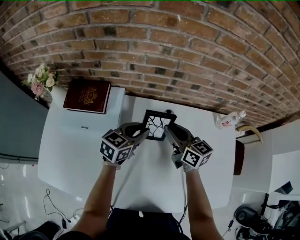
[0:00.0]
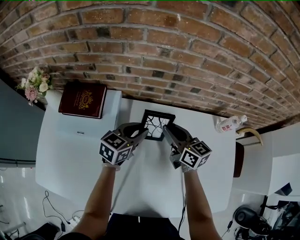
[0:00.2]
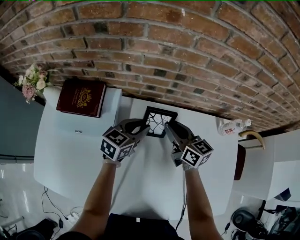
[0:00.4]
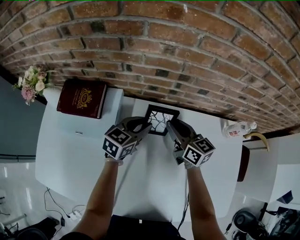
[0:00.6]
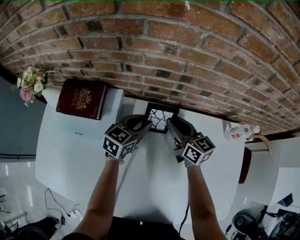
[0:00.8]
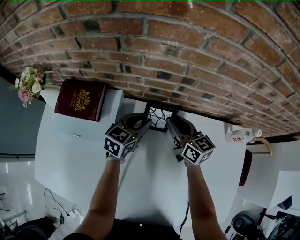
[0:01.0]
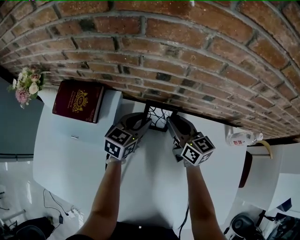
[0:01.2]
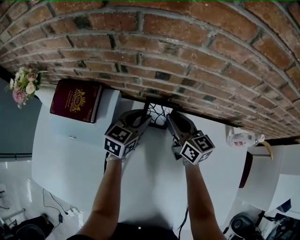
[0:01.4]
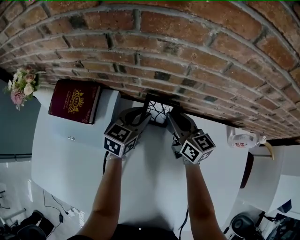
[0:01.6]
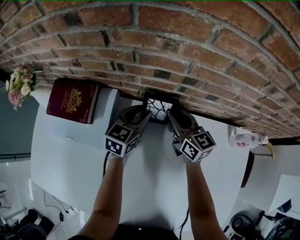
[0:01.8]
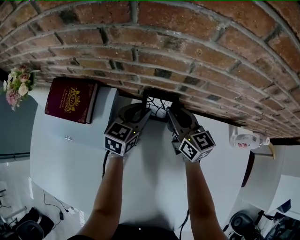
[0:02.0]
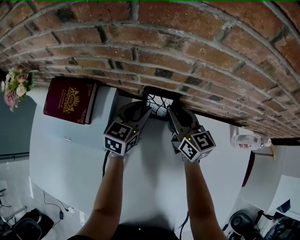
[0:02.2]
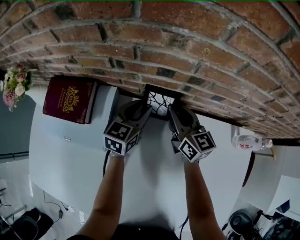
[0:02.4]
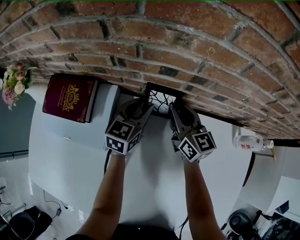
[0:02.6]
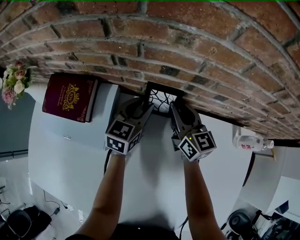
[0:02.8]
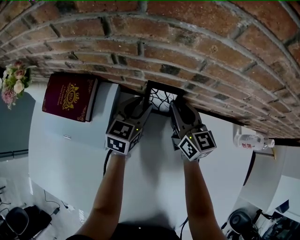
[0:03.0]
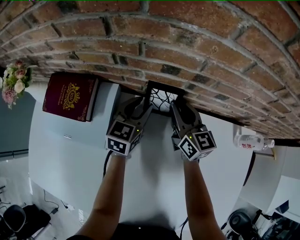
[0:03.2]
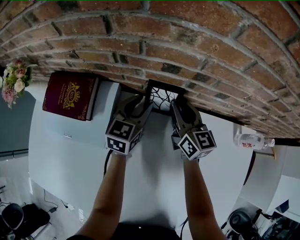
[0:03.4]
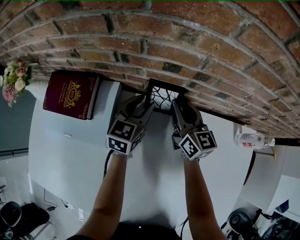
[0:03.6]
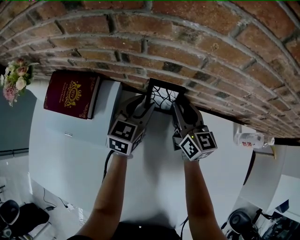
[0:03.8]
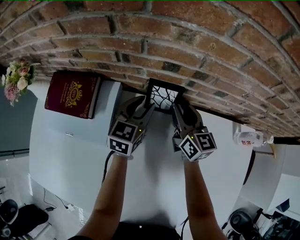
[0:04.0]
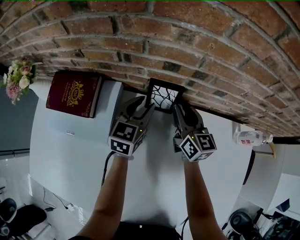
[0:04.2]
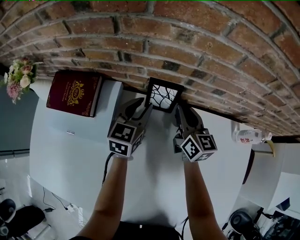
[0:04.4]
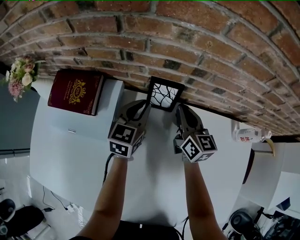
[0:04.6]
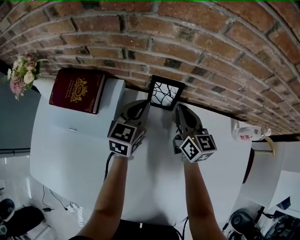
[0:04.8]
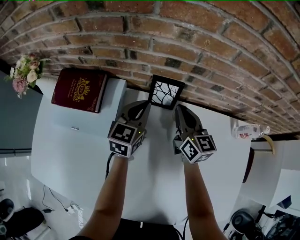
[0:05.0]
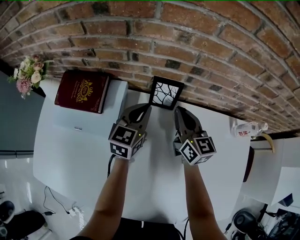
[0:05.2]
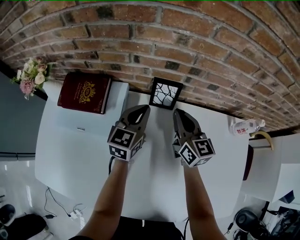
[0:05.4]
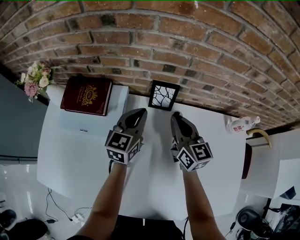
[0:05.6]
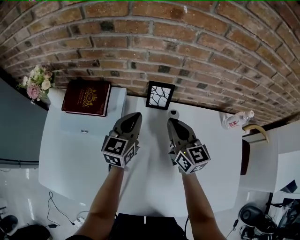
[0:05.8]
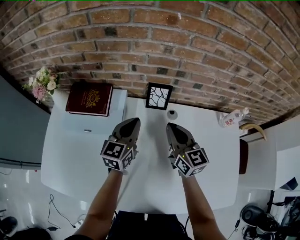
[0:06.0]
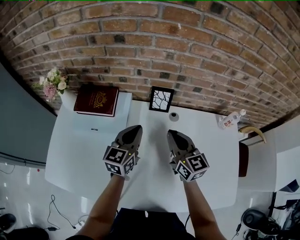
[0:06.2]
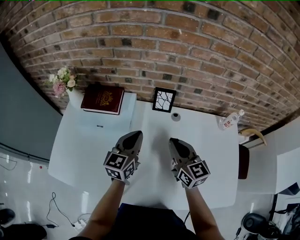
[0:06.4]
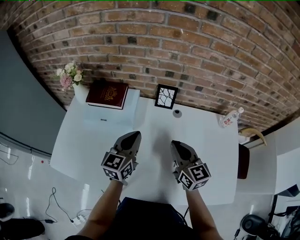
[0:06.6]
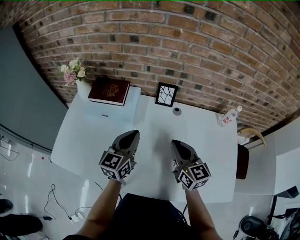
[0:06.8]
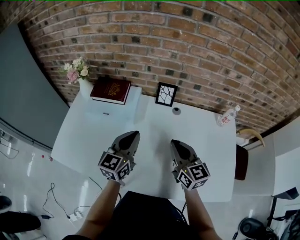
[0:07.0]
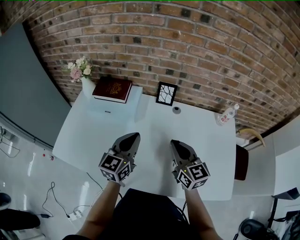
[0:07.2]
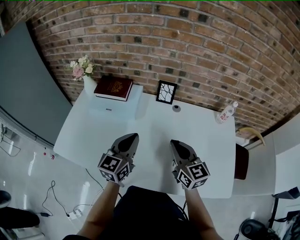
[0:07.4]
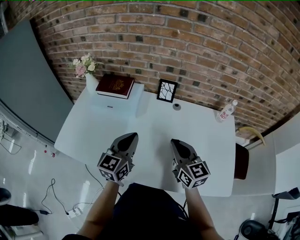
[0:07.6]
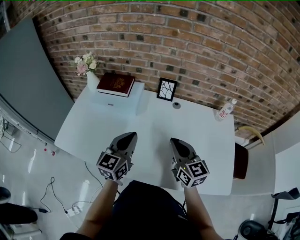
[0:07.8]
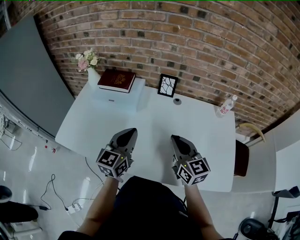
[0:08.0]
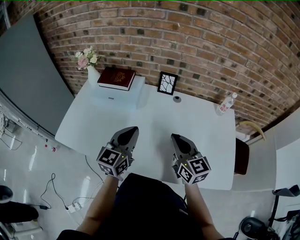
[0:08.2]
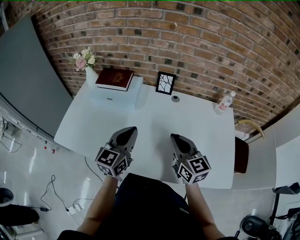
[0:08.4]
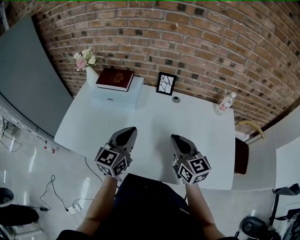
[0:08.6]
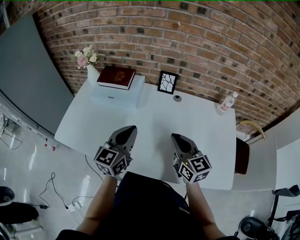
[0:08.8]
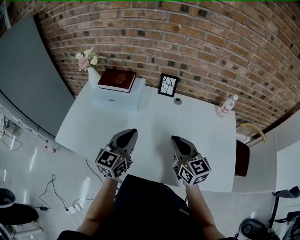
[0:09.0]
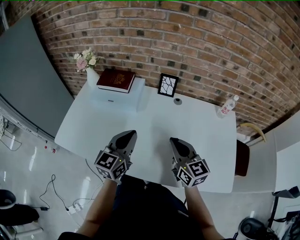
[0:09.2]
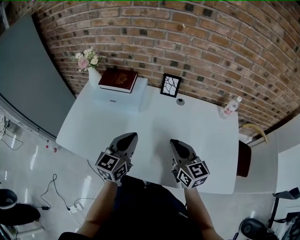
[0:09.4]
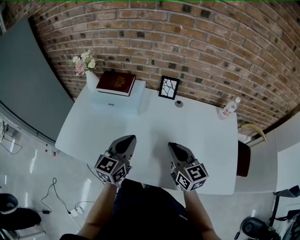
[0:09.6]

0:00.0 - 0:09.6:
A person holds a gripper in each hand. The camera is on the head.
0:00.0 - 0:01.6: Both grippers move forward and downward, roughly 15 cm.
0:01.6 - 0:03.2: There are only small adjustments of the grippers.
0:03.2 - 0:04.8: The left gripper moves approximately 5 cm, and closes its fingers, while the right gripper closes.
0:04.8 - 0:06.4: Both grippers move backward and upward, roughly 25 cm.
0:06.4 - 0:08.0: Both grippers move backward, about 20 cm.
0:08.0 - 0:09.6: There are only small adjustments of the grippers.

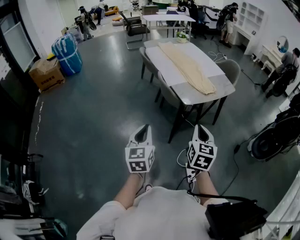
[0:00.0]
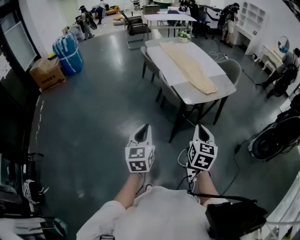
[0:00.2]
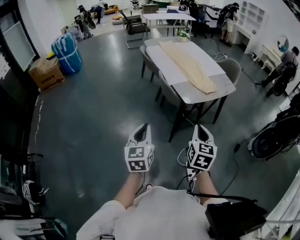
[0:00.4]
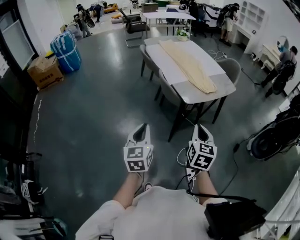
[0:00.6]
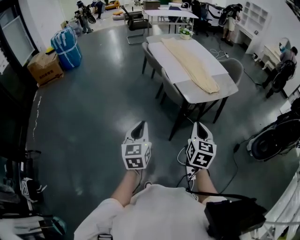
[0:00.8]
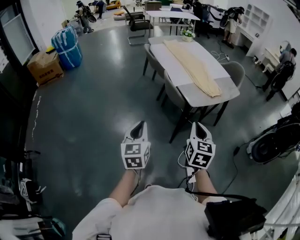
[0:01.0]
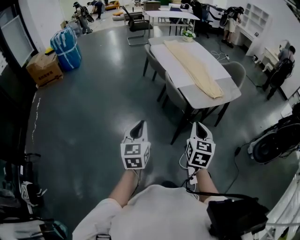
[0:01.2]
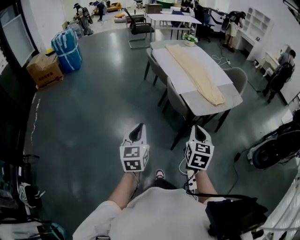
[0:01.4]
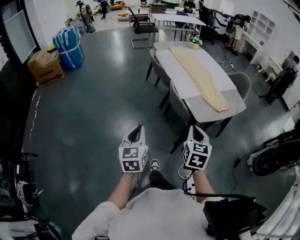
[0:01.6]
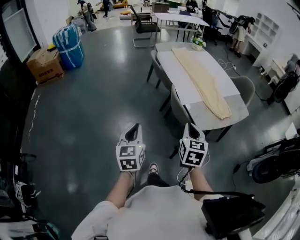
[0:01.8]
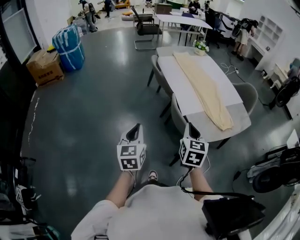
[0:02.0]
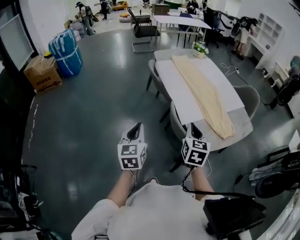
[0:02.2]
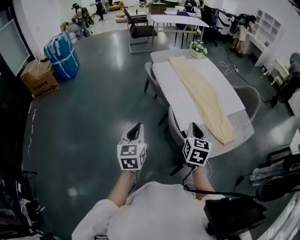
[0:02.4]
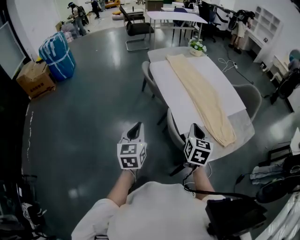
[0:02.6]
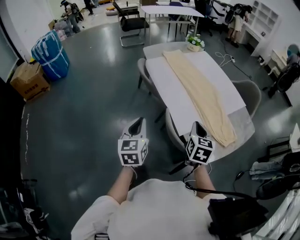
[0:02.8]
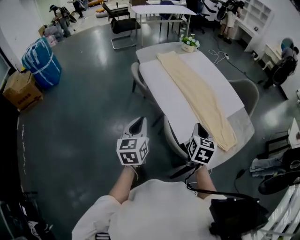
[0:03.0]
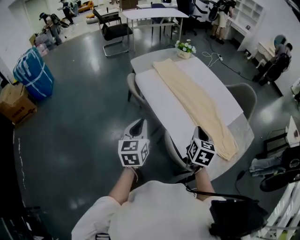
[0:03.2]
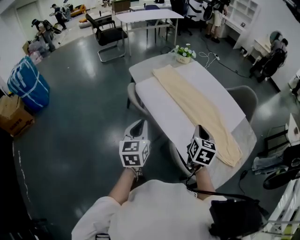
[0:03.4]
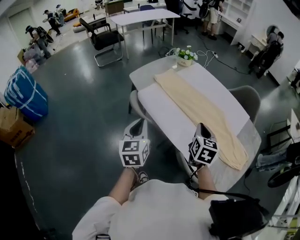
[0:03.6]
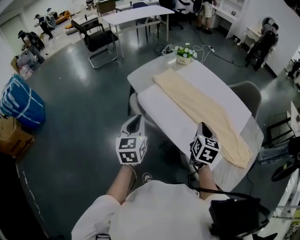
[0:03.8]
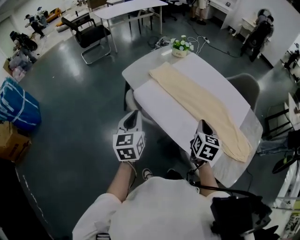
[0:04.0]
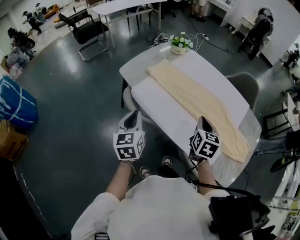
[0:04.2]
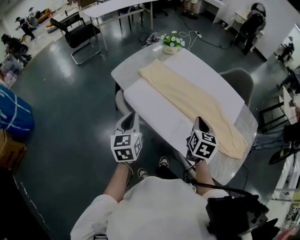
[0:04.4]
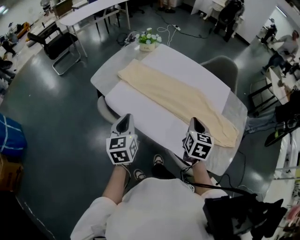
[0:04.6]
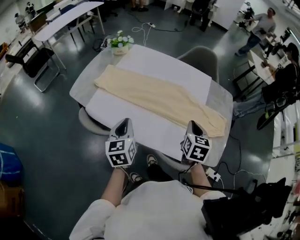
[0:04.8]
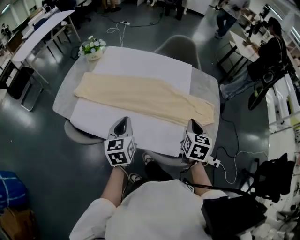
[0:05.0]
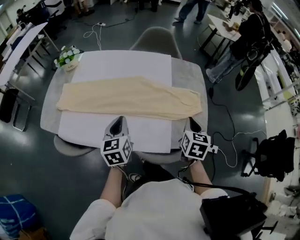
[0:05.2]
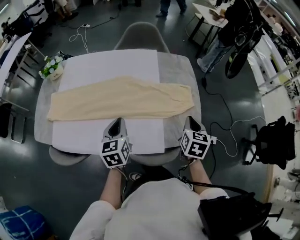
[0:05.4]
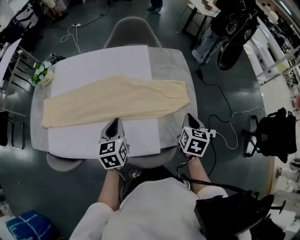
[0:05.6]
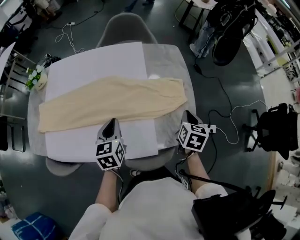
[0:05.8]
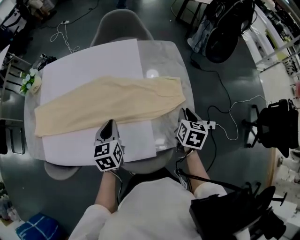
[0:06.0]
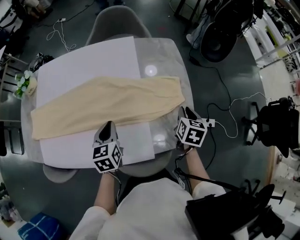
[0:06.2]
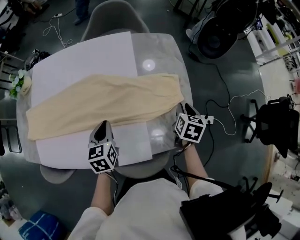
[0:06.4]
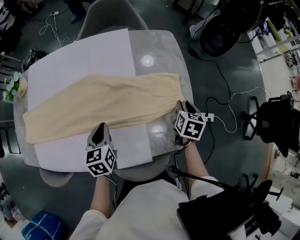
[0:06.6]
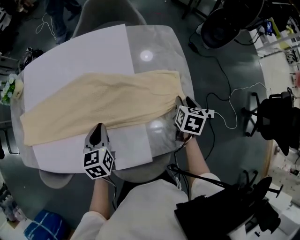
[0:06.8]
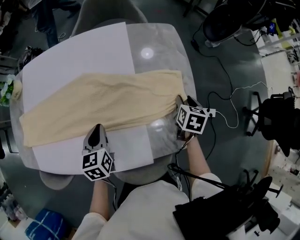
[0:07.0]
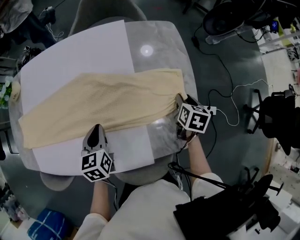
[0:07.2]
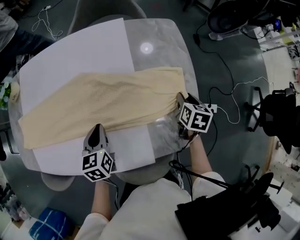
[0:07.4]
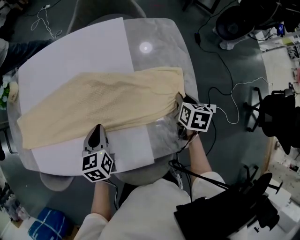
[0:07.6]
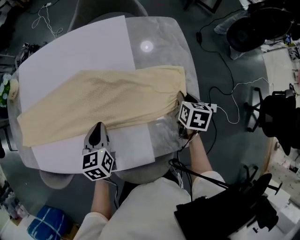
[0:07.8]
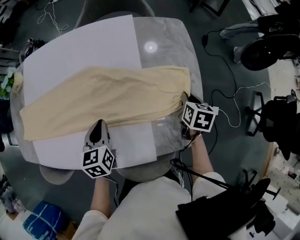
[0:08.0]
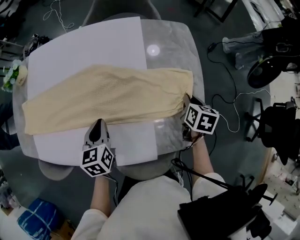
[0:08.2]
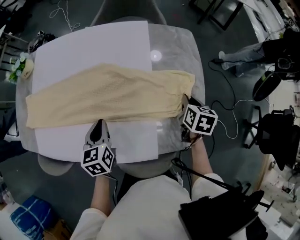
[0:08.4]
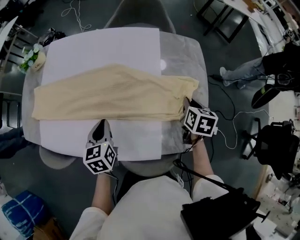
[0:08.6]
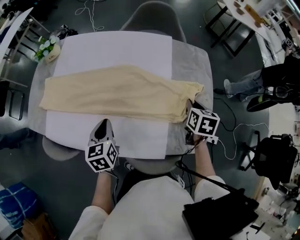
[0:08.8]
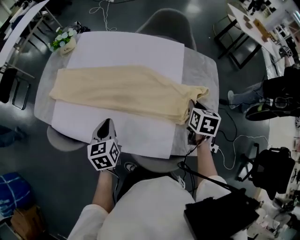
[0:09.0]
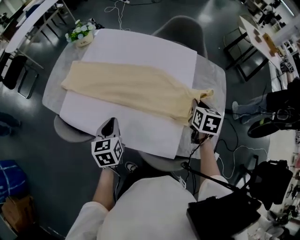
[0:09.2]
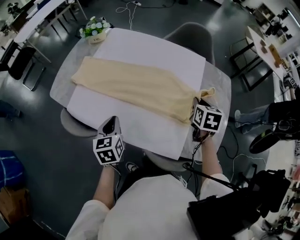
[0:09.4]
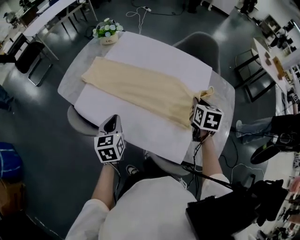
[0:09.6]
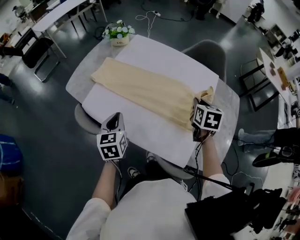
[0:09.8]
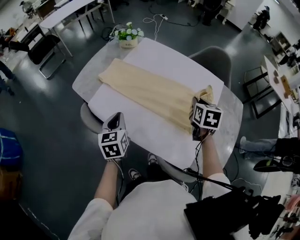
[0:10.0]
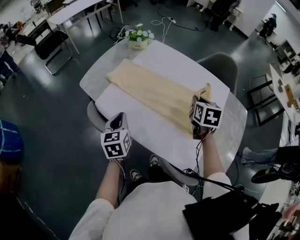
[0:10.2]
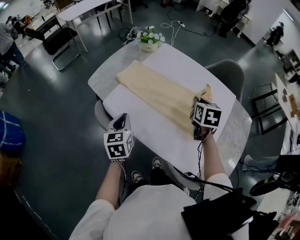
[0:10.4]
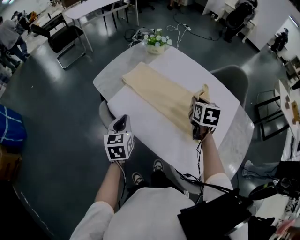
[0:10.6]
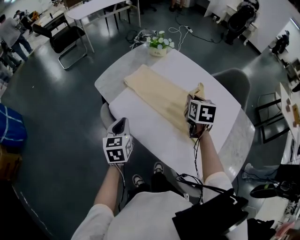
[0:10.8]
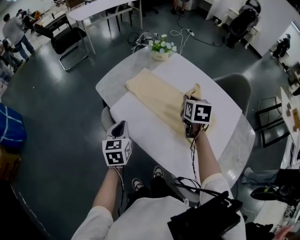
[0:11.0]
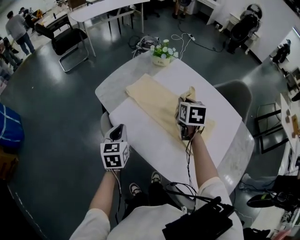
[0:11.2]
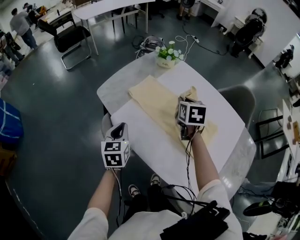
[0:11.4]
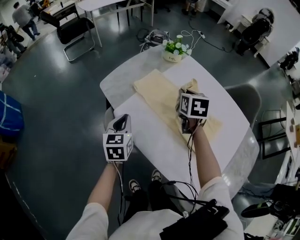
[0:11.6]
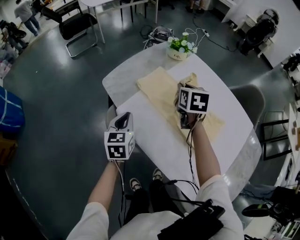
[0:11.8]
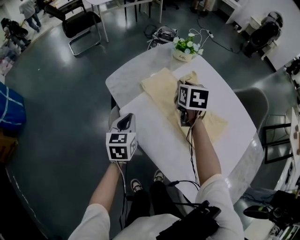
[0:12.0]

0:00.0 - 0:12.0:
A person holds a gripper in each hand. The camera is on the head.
0:00.0 - 0:01.6: The right gripper is displaced forward and to the left by roughly 20 cm; the left gripper travels to the left and forward by approximately 20 cm.
0:01.6 - 0:03.0: Both grippers are carried forward, some 50 cm.
0:03.0 - 0:04.4: The two grippers go about 30 cm forward and to the left. The right gripper rotates about 20 degrees.
0:04.4 - 0:06.0: The pair of grippers is taken about 40 cm. The left gripper swivels about 50 degrees. Meanwhile the right gripper changes its angle by roughly 50 degrees.
0:06.0 - 0:07.6: The right gripper is displaced downward and forward by some 15 cm, and opens, then closes again, while the left gripper shifts about 10 cm downward.
0:07.6 - 0:09.0: The right gripper moves to the left and upward, approximately 20 cm, and turns by about 20 degrees, while the left gripper goes roughly 20 cm to the left, backward and upward, and changes its angle by some 20 degrees.
0:09.0 - 0:10.4: The two grippers go approximately 30 cm to the left. The left gripper turns by about 20 degrees. The right gripper turns by about 30 degrees.
0:10.4 - 0:12.0: The left gripper shifts about 15 cm forward, to the left and downward; the right gripper moves to the left and forward, about 30 cm.

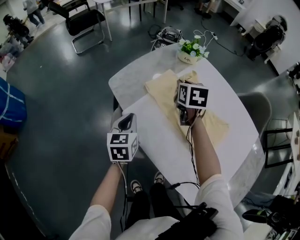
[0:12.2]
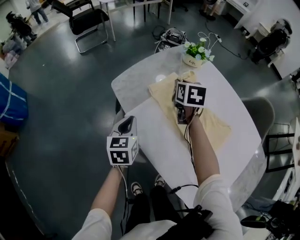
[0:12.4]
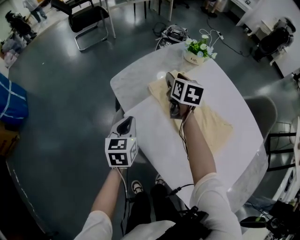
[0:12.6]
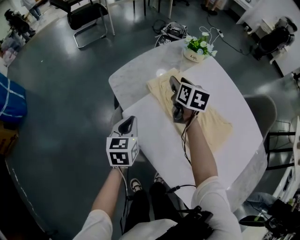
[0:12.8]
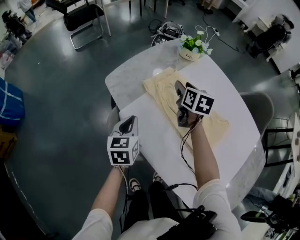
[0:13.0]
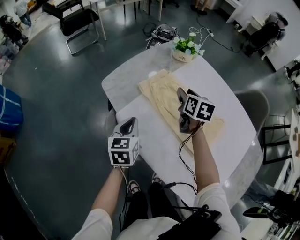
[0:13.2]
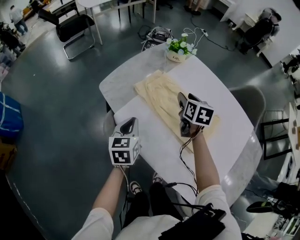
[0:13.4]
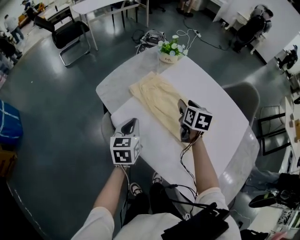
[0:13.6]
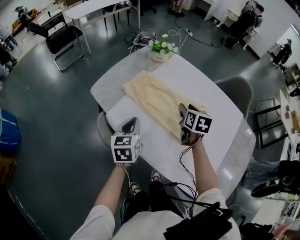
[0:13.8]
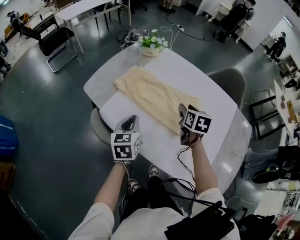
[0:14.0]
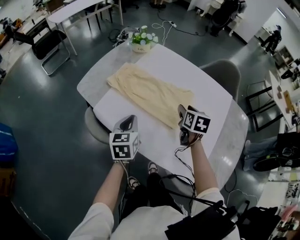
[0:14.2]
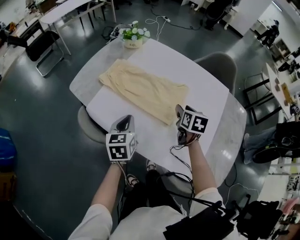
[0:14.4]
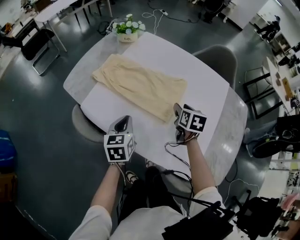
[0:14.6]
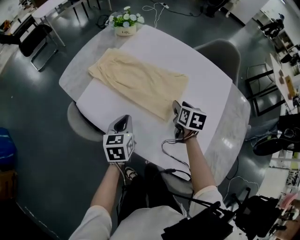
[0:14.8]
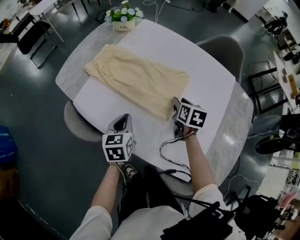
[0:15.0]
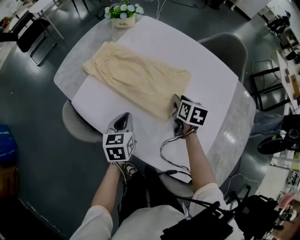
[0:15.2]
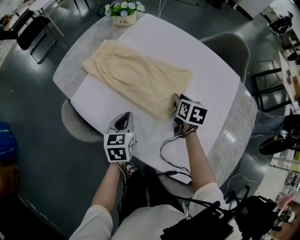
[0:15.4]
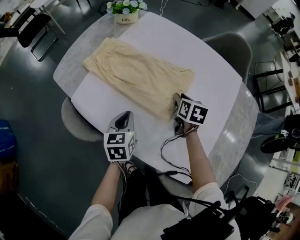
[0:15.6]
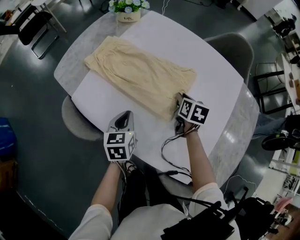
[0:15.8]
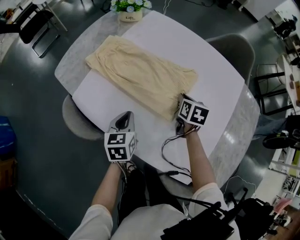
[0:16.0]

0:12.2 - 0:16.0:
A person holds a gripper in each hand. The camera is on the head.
0:12.2 - 0:13.4: The left gripper shifts about 5 cm to the right; the right gripper travels to the right by about 10 cm, and opens up.
0:13.4 - 0:14.8: The left gripper shifts some 15 cm to the right; the right gripper is displaced to the right and backward by roughly 25 cm, and rotates about 20 degrees.
0:14.8 - 0:16.0: The left gripper moves roughly 5 cm. The right gripper shifts about 5 cm downward, and closes its fingers.
